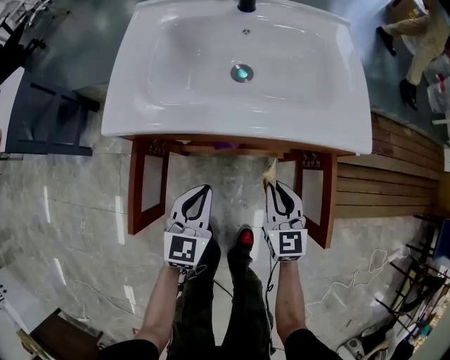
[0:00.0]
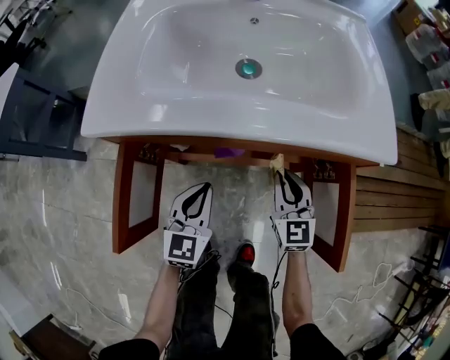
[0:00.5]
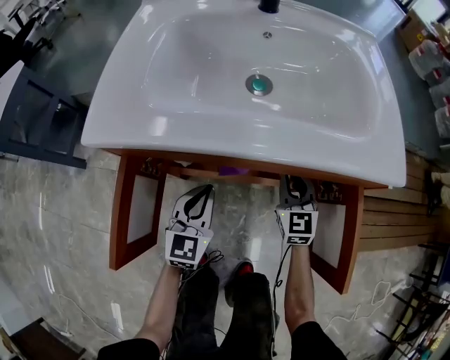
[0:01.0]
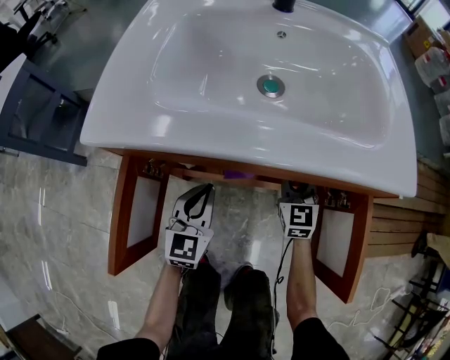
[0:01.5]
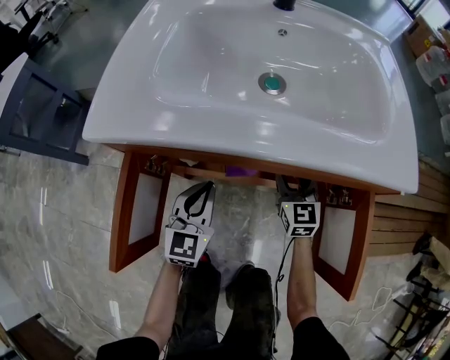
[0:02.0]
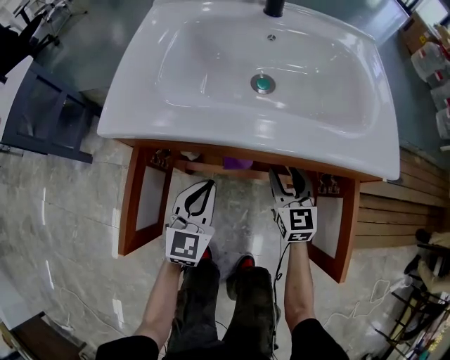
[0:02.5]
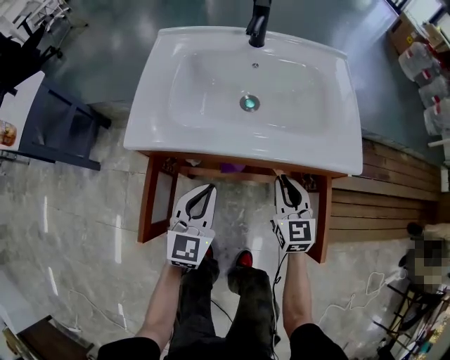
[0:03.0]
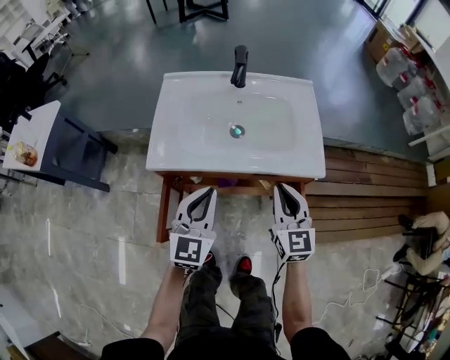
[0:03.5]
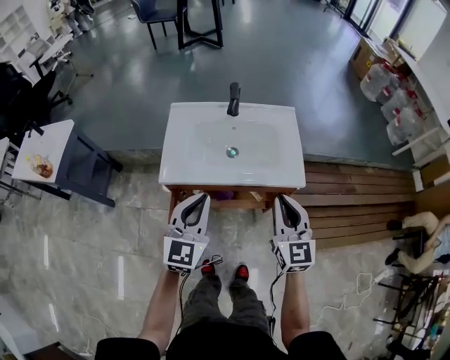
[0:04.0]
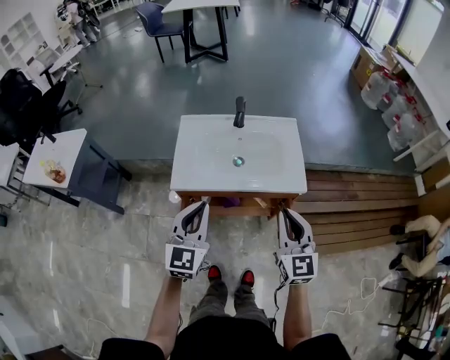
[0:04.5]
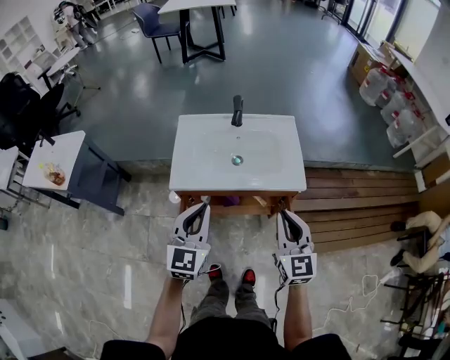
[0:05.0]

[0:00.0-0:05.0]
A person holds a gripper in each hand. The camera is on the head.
0:00.0 to 0:02.5: The right gripper shifts some 15 cm forward and downward, and opens. Meanwhile the left gripper goes about 10 cm downward and forward.
0:02.5 to 0:05.0: The grippers both shift upward by roughly 40 cm. The right gripper closes.

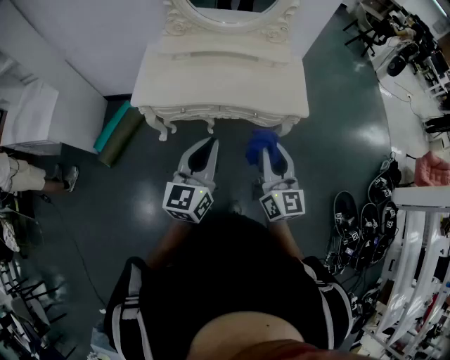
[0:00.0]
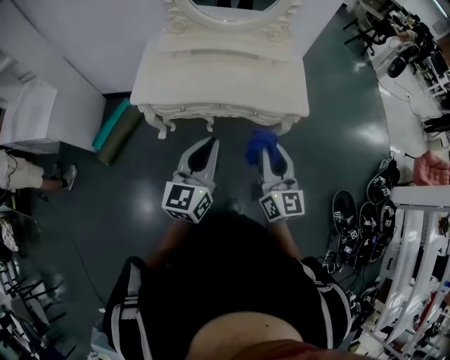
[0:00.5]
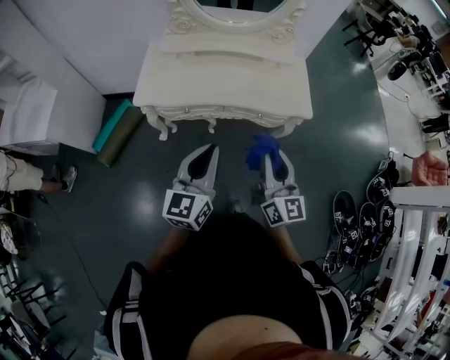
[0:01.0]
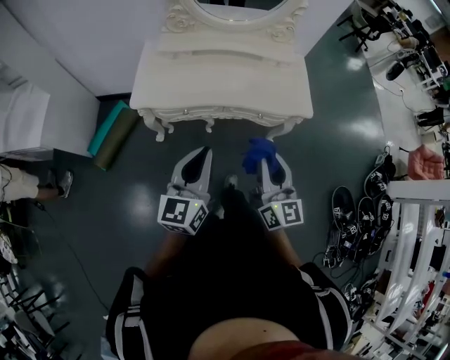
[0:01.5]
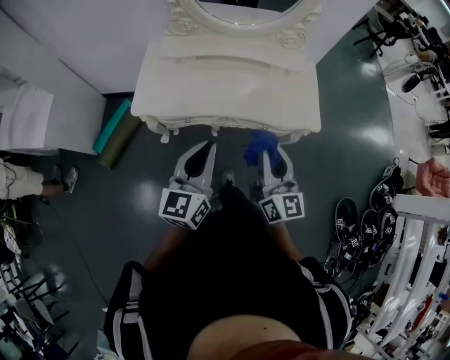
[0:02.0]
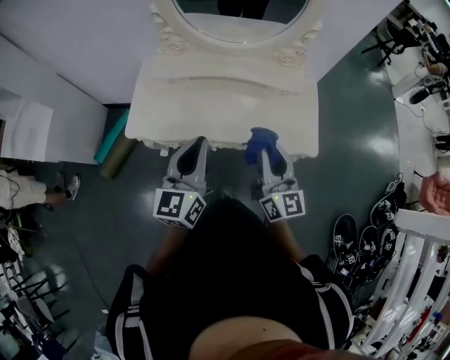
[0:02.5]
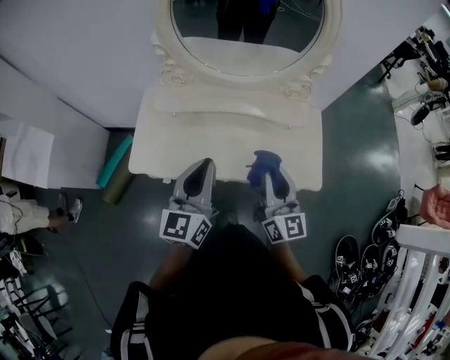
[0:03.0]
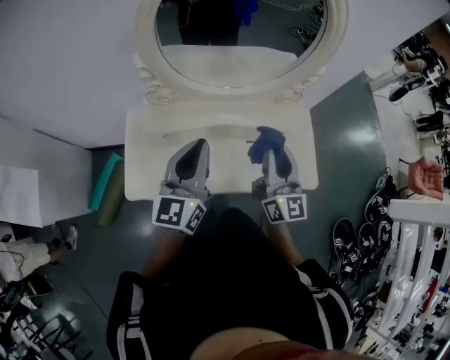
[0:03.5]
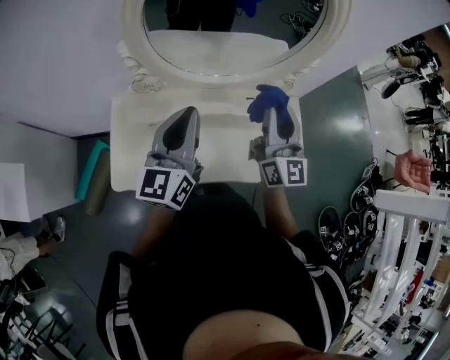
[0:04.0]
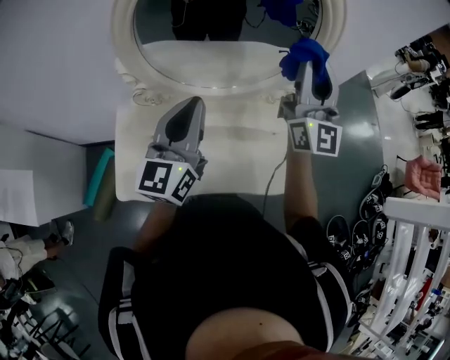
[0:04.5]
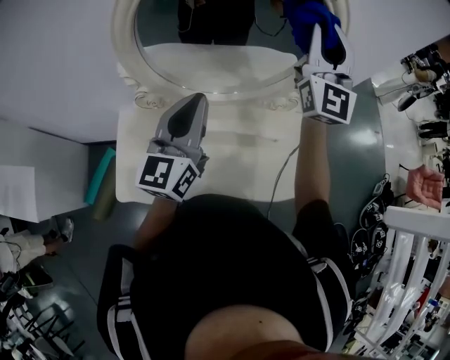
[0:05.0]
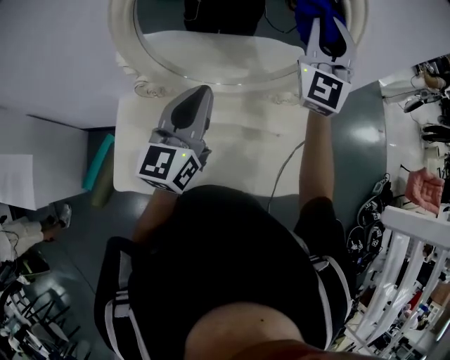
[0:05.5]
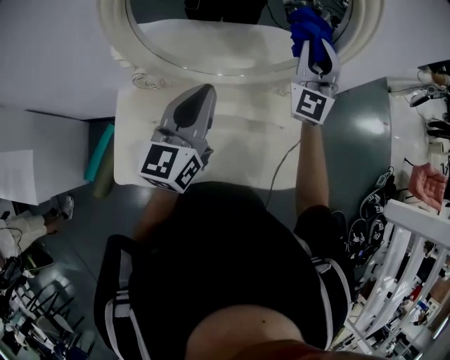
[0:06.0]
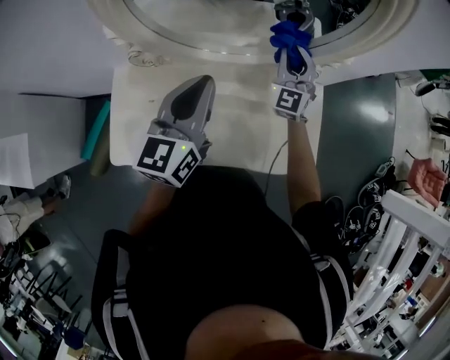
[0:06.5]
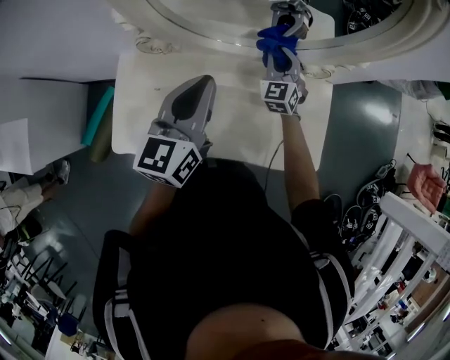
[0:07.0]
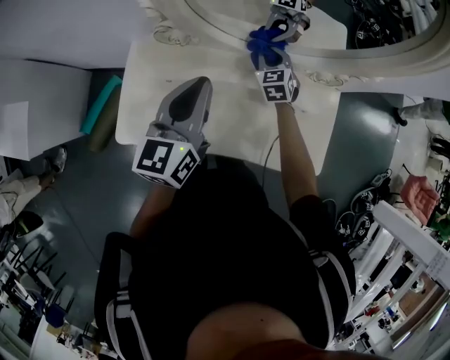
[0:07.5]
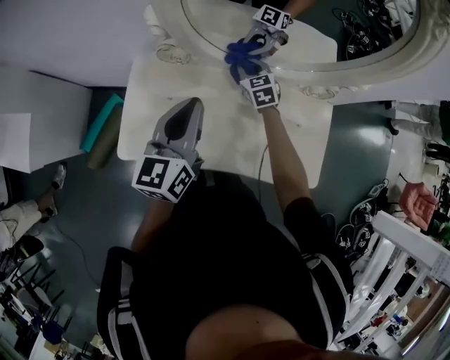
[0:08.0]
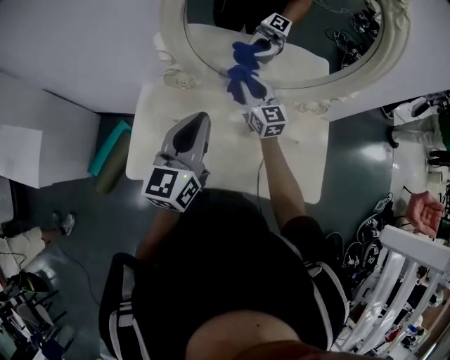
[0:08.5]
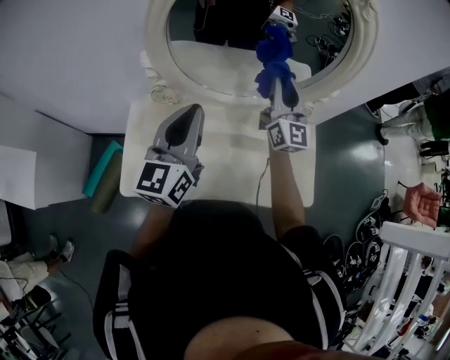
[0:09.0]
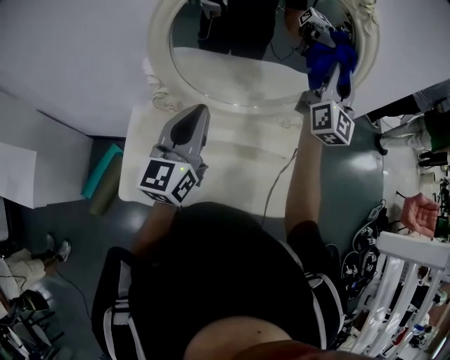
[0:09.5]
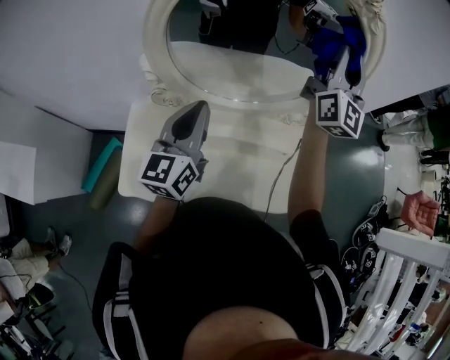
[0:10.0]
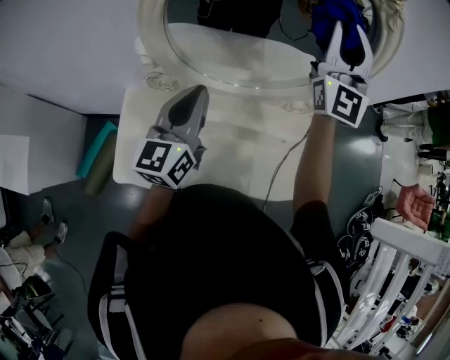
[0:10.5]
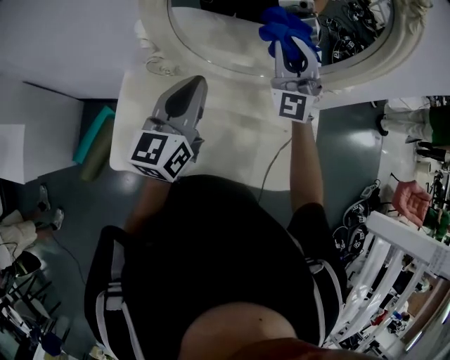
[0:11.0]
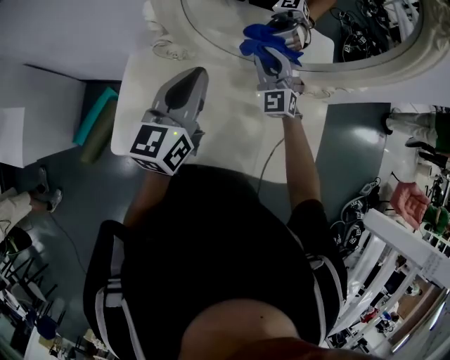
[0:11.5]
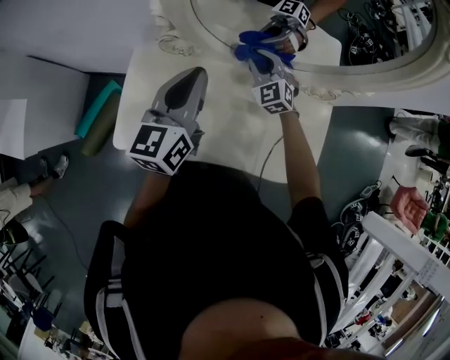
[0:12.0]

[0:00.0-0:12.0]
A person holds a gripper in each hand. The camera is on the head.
0:00.0 to 0:02.0: The two grippers go some 10 cm forward.
0:02.0 to 0:04.0: The grippers both shift forward by about 35 cm.
0:04.0 to 0:06.0: The right gripper goes some 20 cm forward, and rotates around the line of its fingers by approximately 40 degrees, counterclockwise from behind; the left gripper goes approximately 10 cm forward.
0:06.0 to 0:08.0: The right gripper goes some 40 cm downward and to the left, and tips its fingers downward by some 50 degrees. Meanwhile the left gripper goes approximately 15 cm to the left, backward and downward.
0:08.0 to 0:10.0: The right gripper is displaced upward and to the right by approximately 50 cm, and points its fingers approximately 70 degrees further upward. Meanwhile the left gripper shifts about 5 cm upward.
0:10.0 to 0:12.0: The right gripper heads downward and to the left, covering some 40 cm, and tilts its fingers some 60 degrees downward, while the left gripper shifts roughly 5 cm downward.

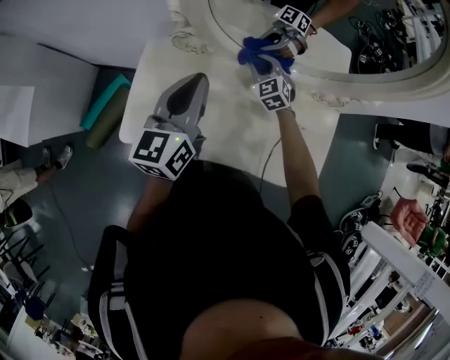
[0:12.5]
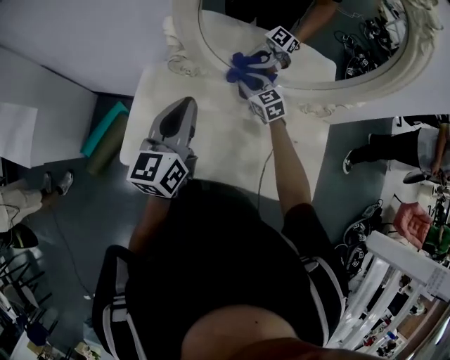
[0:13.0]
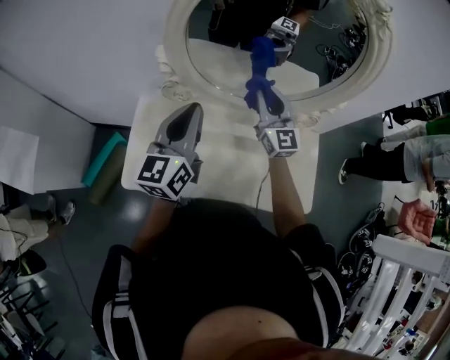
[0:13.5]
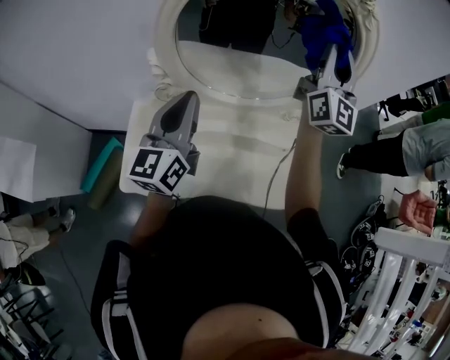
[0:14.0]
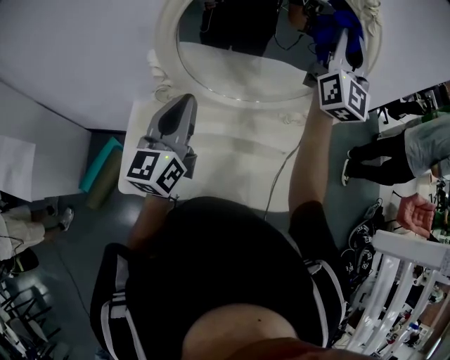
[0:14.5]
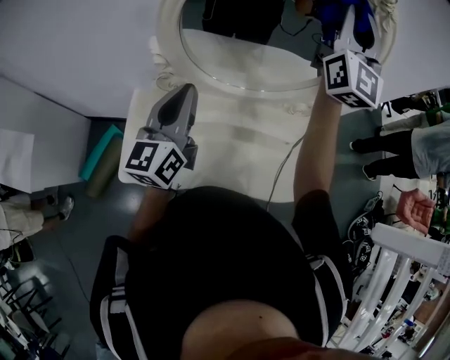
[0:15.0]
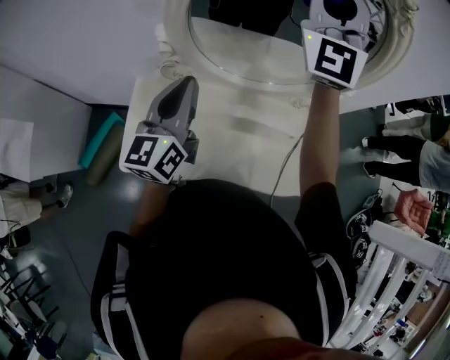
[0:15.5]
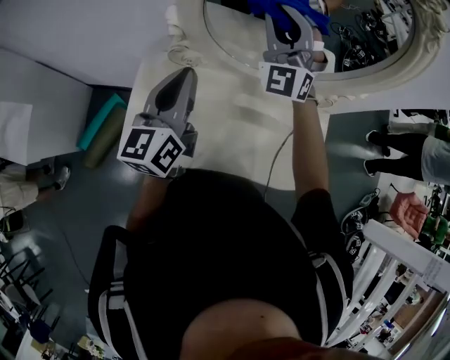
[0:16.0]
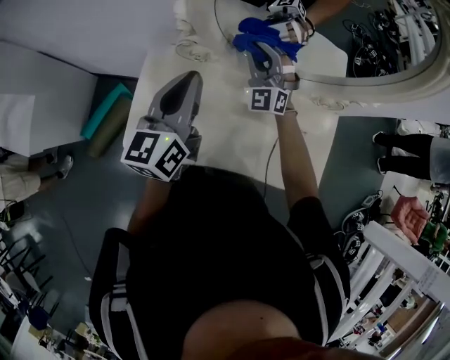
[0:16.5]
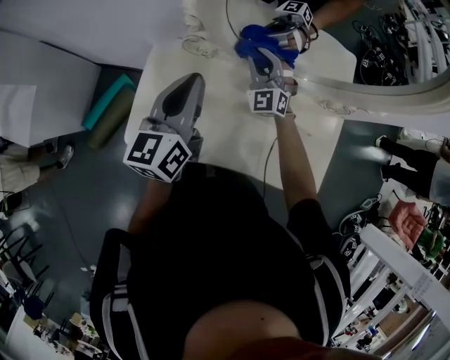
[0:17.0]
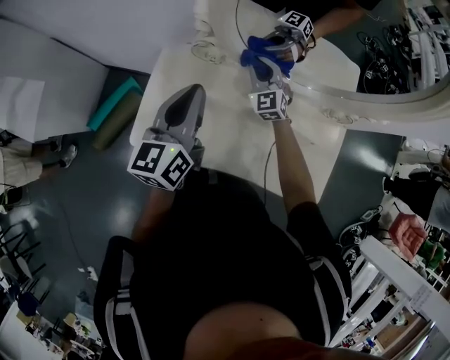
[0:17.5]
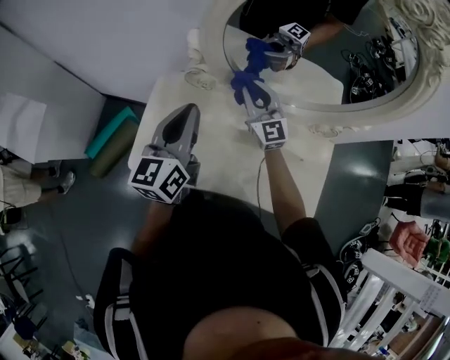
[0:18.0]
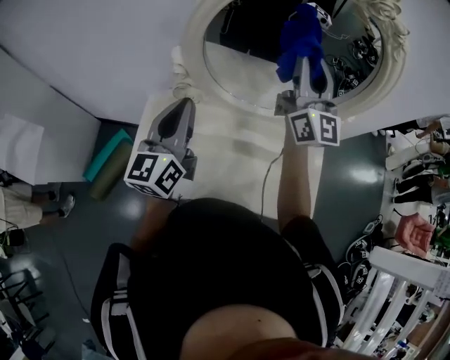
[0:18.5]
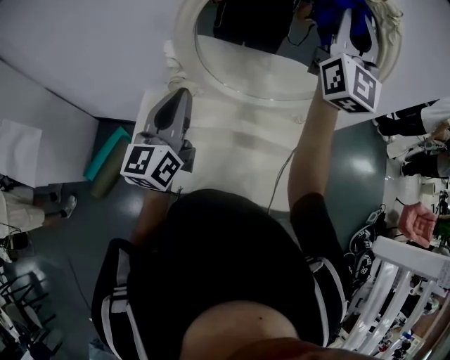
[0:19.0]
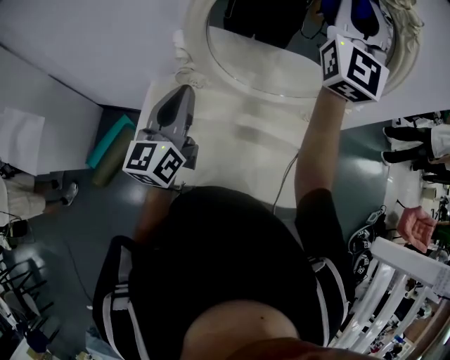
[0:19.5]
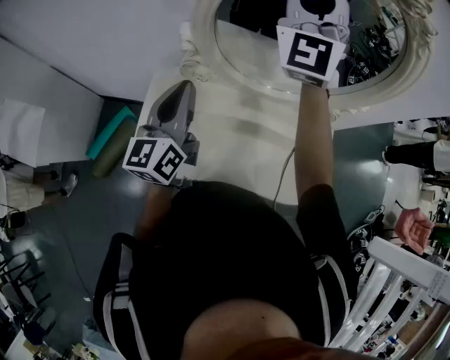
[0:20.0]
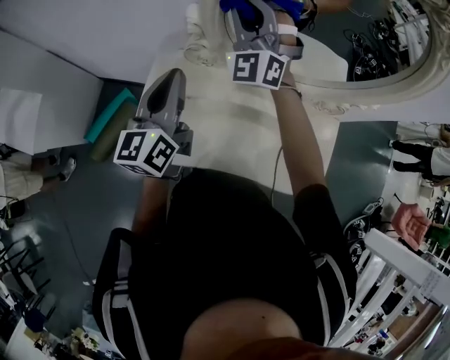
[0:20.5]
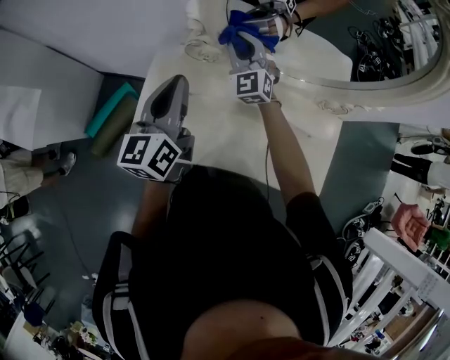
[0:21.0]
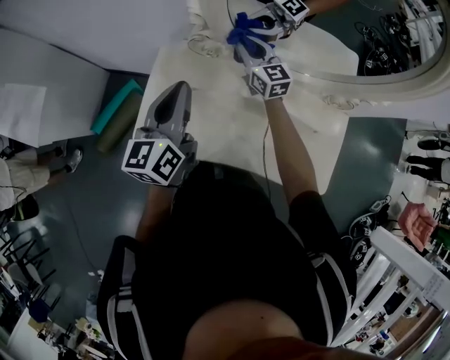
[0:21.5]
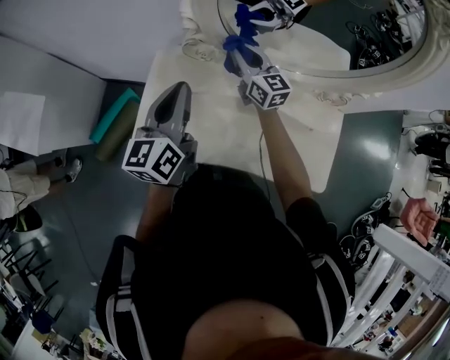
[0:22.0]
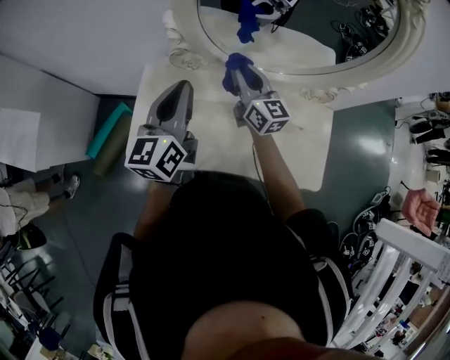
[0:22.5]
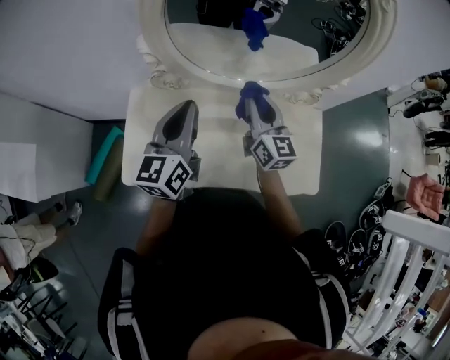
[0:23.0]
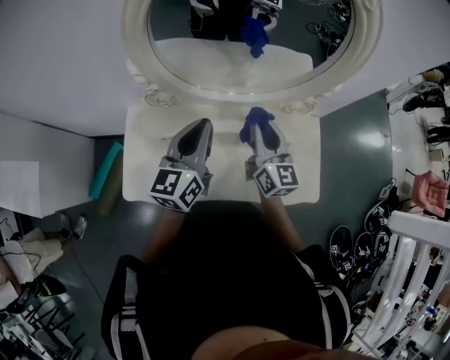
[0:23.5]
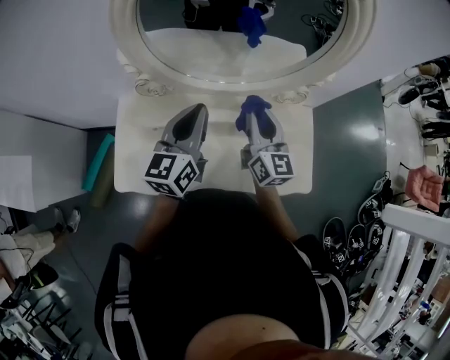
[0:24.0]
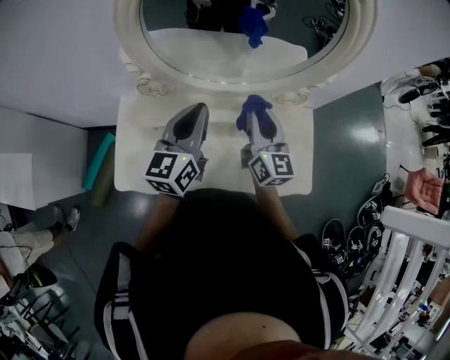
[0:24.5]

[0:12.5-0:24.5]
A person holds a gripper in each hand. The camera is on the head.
0:12.5 to 0:14.5: The right gripper heads upward, covering roughly 50 cm, and tips its fingers upward by approximately 60 degrees. The left gripper heads upward, covering about 5 cm.
0:14.5 to 0:16.5: The right gripper travels downward and to the left by approximately 40 cm, and angles its fingers downward, by roughly 30 degrees. The left gripper goes approximately 10 cm downward and to the left.
0:16.5 to 0:18.5: The right gripper heads upward, covering roughly 25 cm, and rolls clockwise, seen from behind, by about 50 degrees; the left gripper is displaced upward by about 5 cm.
0:18.5 to 0:20.5: The left gripper moves some 5 cm, while the right gripper is displaced to the left and downward by roughly 20 cm, and rotates around the line of its fingers by about 60 degrees, counterclockwise from behind.
0:20.5 to 0:22.5: The left gripper shifts by roughly 5 cm; the right gripper is displaced downward, backward and to the right by approximately 20 cm, and rolls clockwise, seen from behind, by roughly 80 degrees.
0:22.5 to 0:24.5: The two grippers go about 15 cm to the right. The right gripper changes its angle by approximately 20 degrees.
